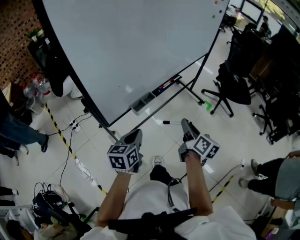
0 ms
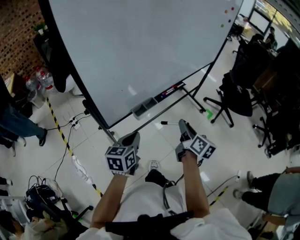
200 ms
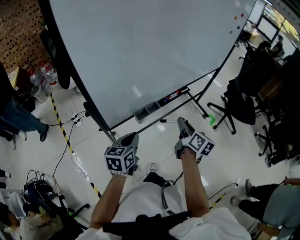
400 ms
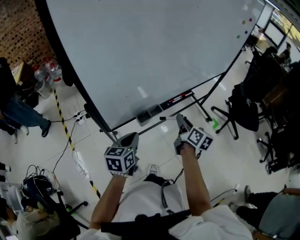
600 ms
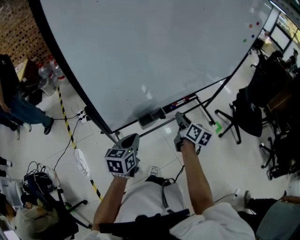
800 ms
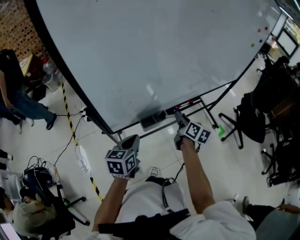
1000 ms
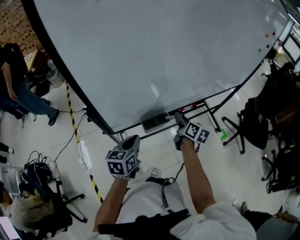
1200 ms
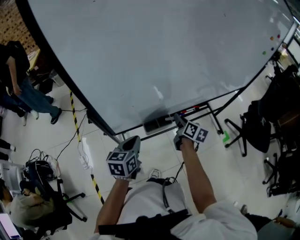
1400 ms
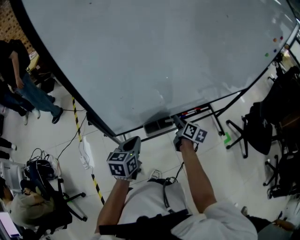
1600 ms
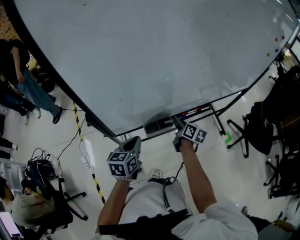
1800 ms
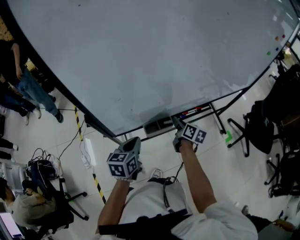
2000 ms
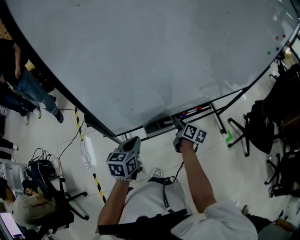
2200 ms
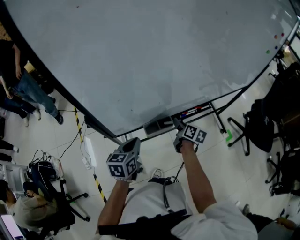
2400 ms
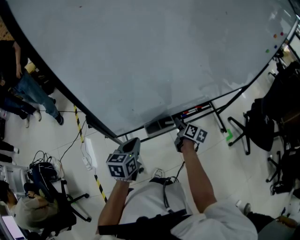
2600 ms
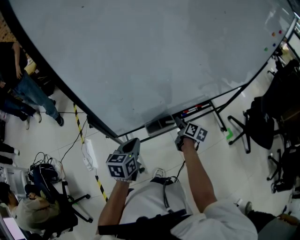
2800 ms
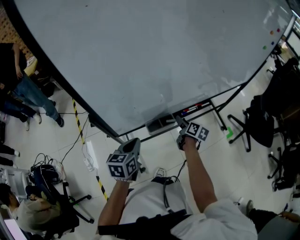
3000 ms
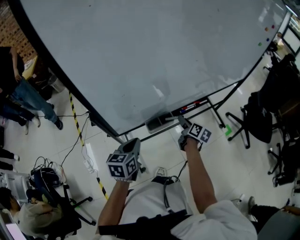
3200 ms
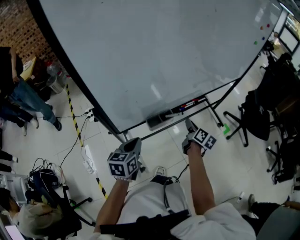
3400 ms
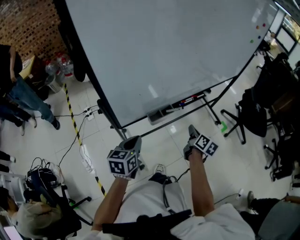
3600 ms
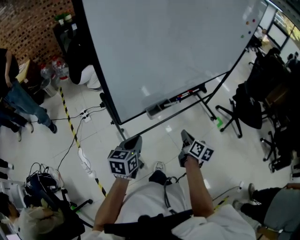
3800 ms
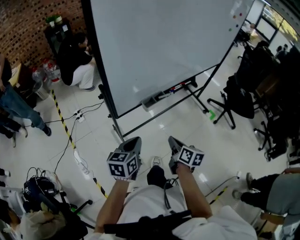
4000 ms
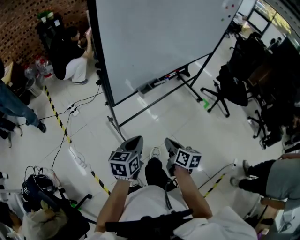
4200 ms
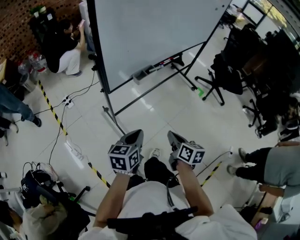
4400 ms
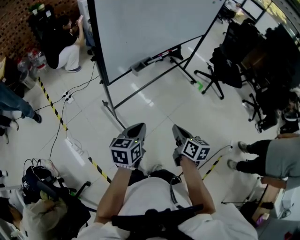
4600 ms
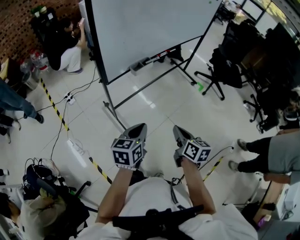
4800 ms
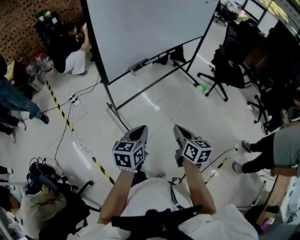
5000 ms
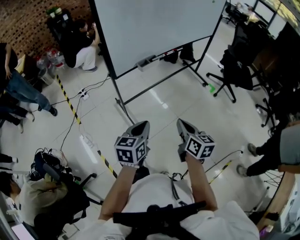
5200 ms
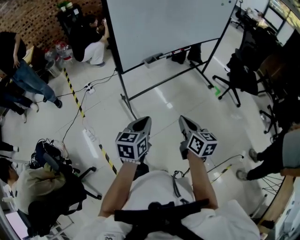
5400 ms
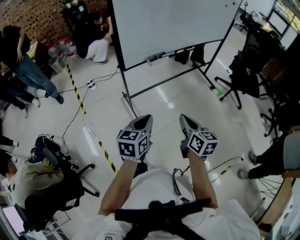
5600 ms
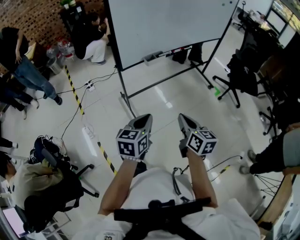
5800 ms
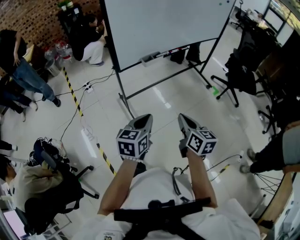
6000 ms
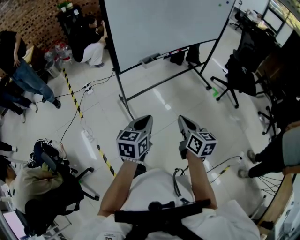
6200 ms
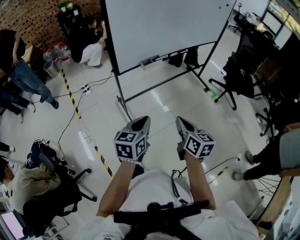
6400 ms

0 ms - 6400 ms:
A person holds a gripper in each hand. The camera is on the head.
0 ms - 1600 ms: The left gripper moves forward, some 10 cm, and turns by roughly 20 degrees; the right gripper moves forward and downward, approximately 30 cm, and rotates approximately 30 degrees.
1600 ms - 3200 ms: The right gripper moves about 5 cm, and opens up.
3200 ms - 4800 ms: The left gripper shifts some 30 cm backward, and rotates approximately 20 degrees, while the right gripper goes about 50 cm backward, and closes up.
4800 ms - 6400 ms: The left gripper shifts approximately 5 cm backward. The right gripper goes some 5 cm upward.

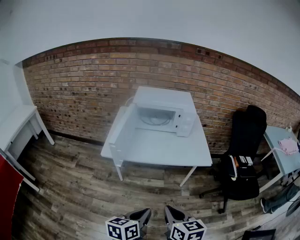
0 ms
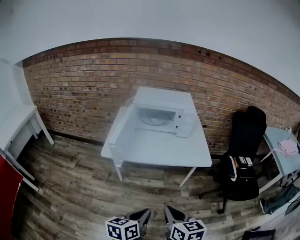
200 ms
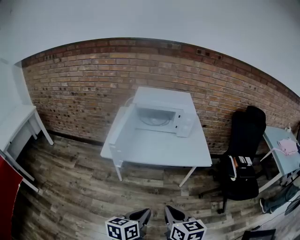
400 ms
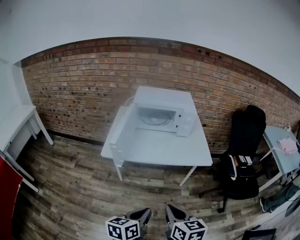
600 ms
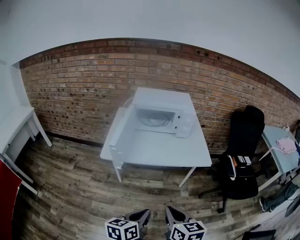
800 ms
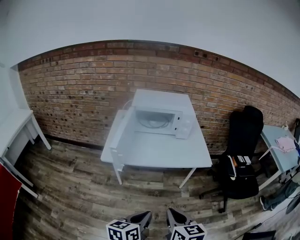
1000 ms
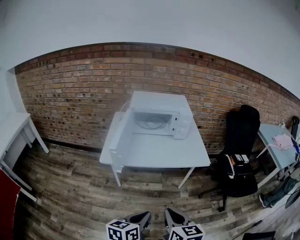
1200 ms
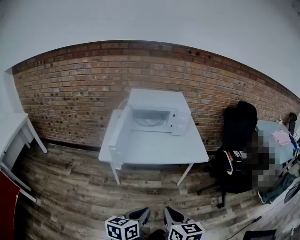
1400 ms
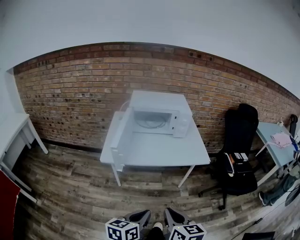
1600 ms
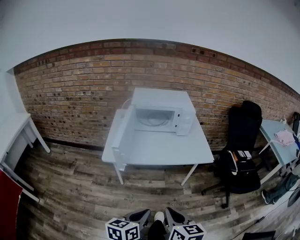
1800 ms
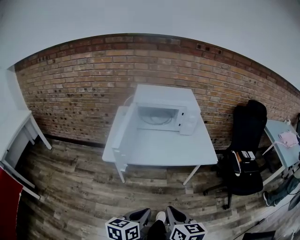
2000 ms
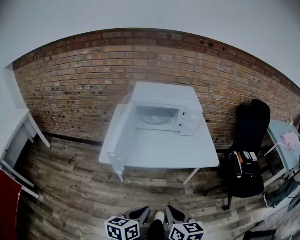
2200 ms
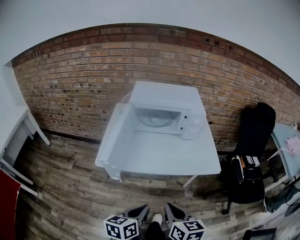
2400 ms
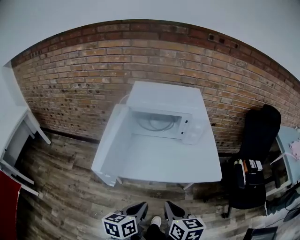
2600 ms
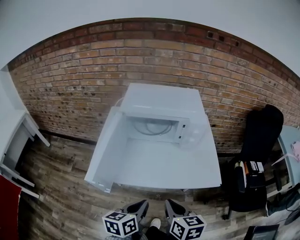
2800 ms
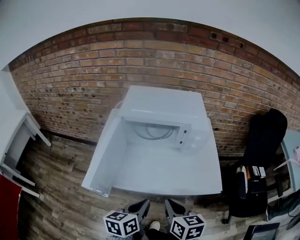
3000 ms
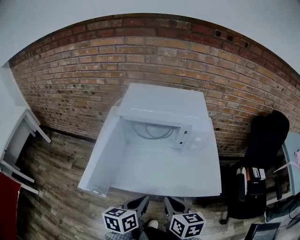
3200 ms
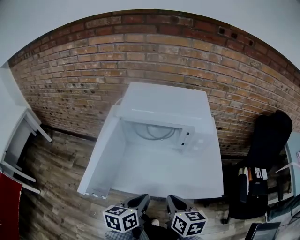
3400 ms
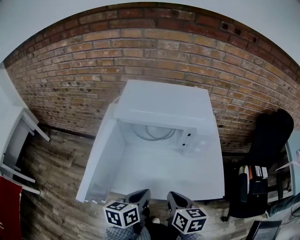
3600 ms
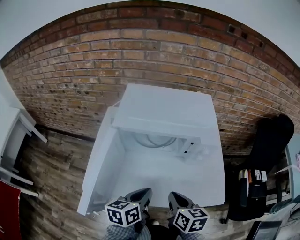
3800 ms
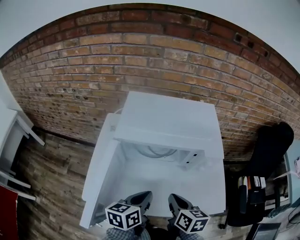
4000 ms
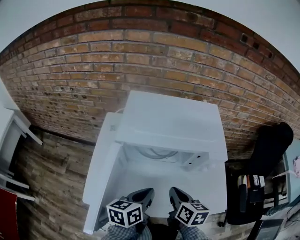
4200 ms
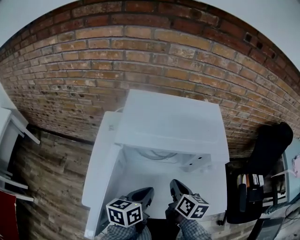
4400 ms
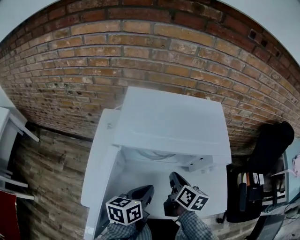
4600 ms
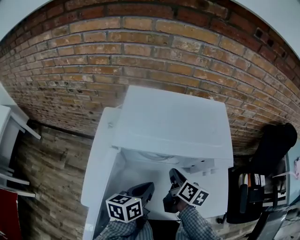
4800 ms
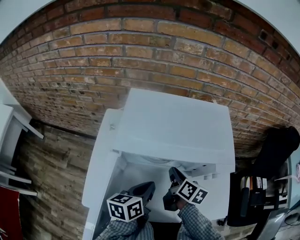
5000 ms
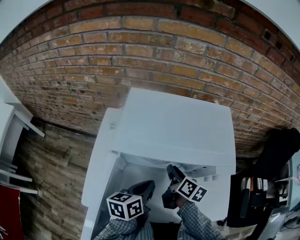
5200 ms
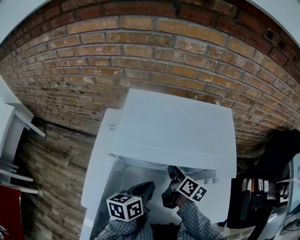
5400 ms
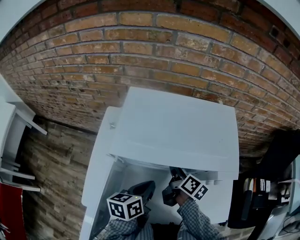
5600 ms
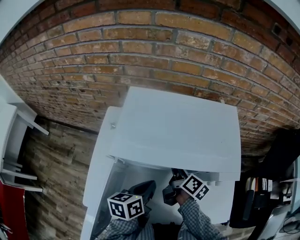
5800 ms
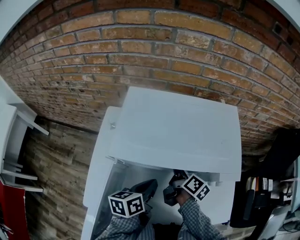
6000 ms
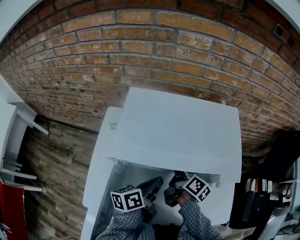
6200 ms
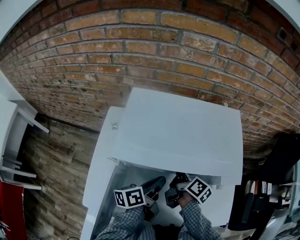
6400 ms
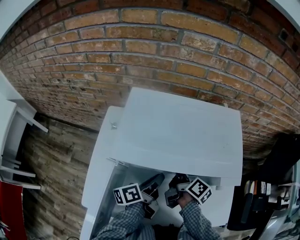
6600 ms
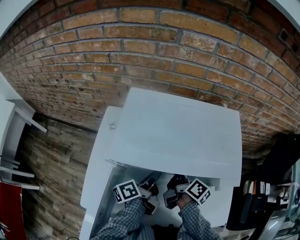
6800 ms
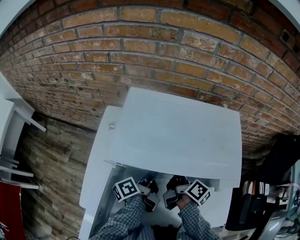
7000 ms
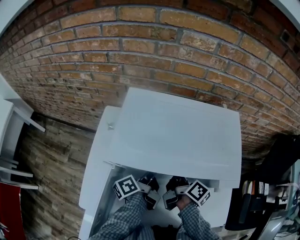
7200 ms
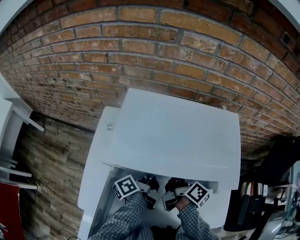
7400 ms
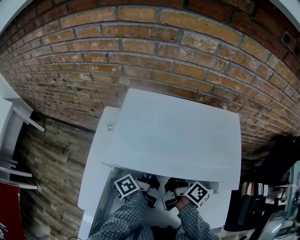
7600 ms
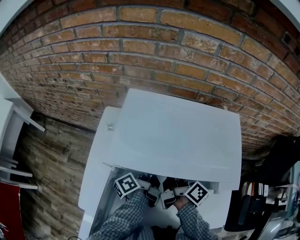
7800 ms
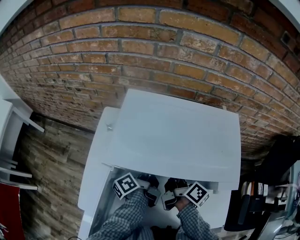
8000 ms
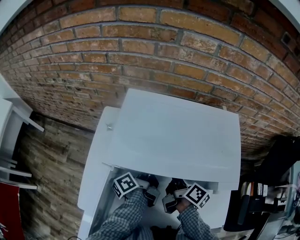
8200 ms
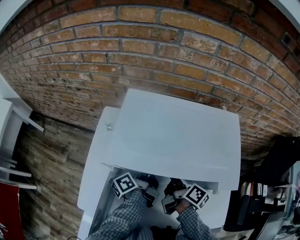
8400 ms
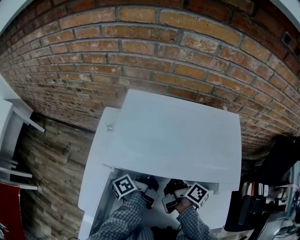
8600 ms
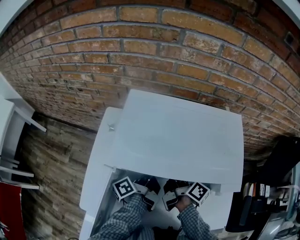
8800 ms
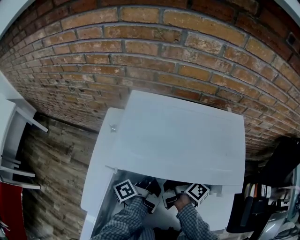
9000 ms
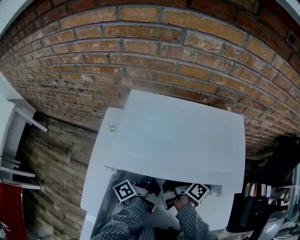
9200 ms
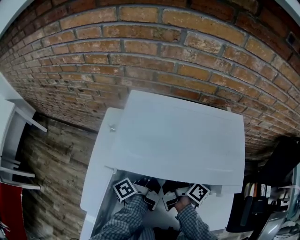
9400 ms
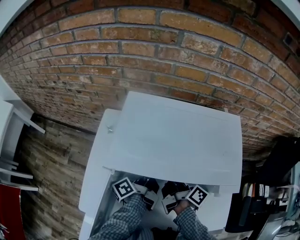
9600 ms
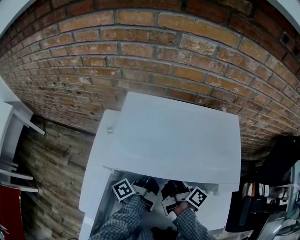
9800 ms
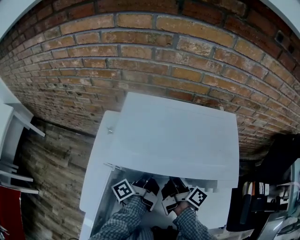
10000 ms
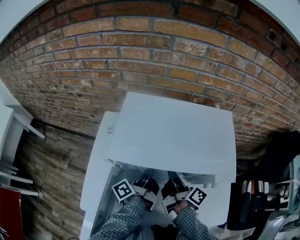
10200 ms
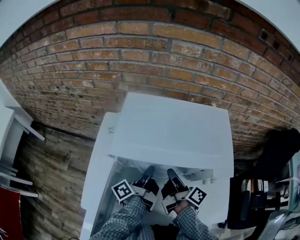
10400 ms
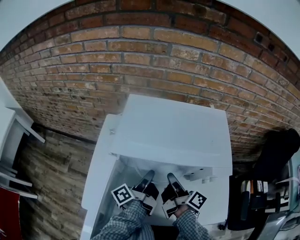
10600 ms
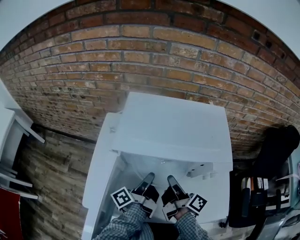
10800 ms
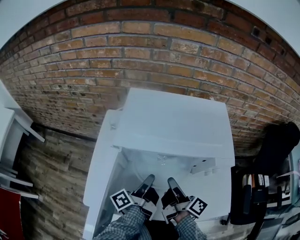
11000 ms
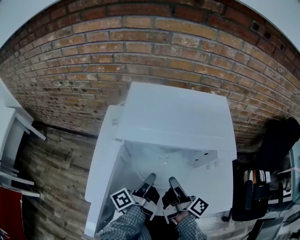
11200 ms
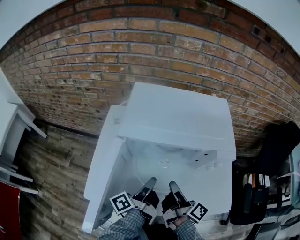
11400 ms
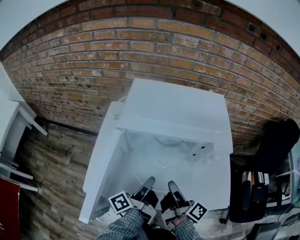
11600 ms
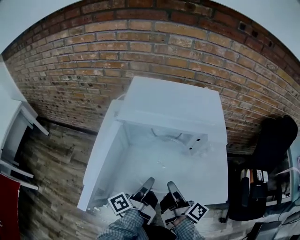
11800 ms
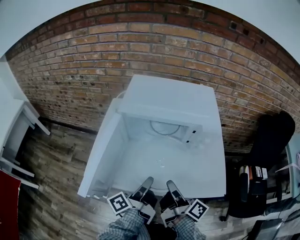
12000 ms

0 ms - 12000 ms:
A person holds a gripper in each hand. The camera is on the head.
1600 ms - 3000 ms: The right gripper moves approximately 35 cm.
3000 ms - 4400 ms: The right gripper changes place by roughly 25 cm.
4400 ms - 6000 ms: The right gripper ends up roughly 15 cm from where it was, and rotates some 30 degrees.
9000 ms - 10400 ms: The right gripper heads upward, covering approximately 5 cm.
10400 ms - 12000 ms: The right gripper shifts by approximately 25 cm.

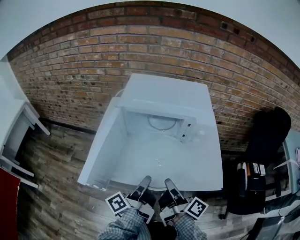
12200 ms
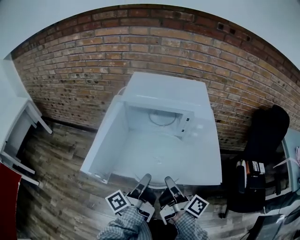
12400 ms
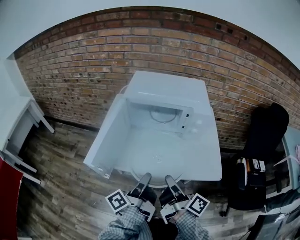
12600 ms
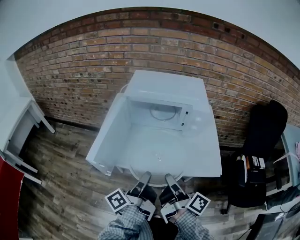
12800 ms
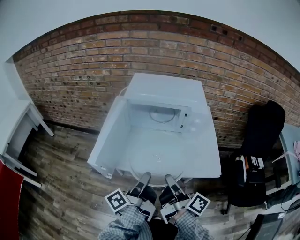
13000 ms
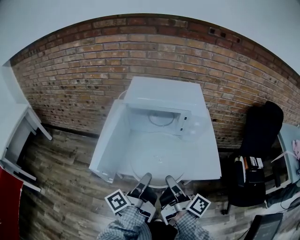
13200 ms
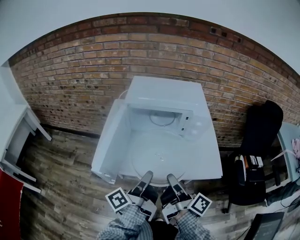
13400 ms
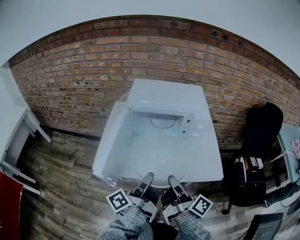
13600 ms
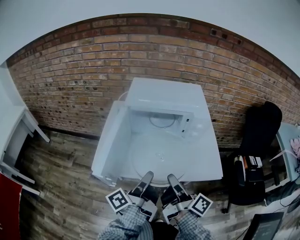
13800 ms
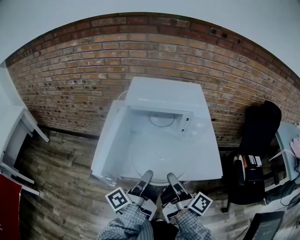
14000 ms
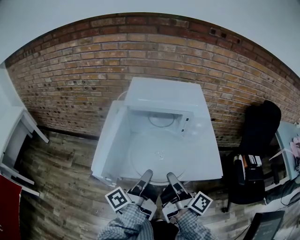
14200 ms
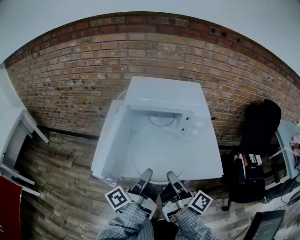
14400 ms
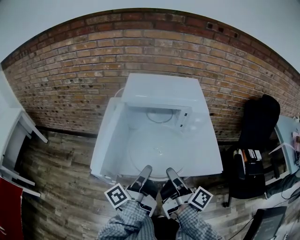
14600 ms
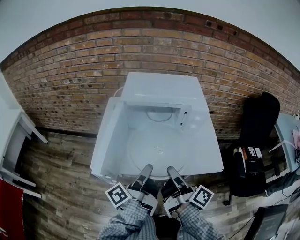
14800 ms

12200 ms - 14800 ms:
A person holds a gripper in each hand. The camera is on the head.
12200 ms - 13400 ms: The right gripper shifts by approximately 10 cm.

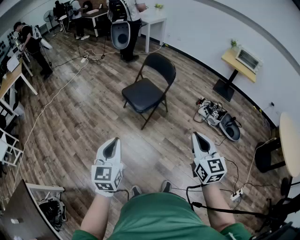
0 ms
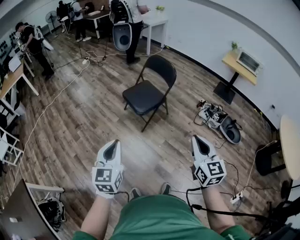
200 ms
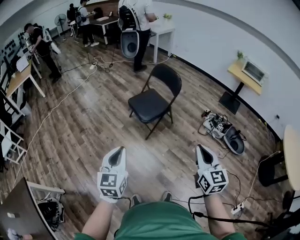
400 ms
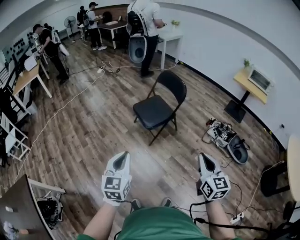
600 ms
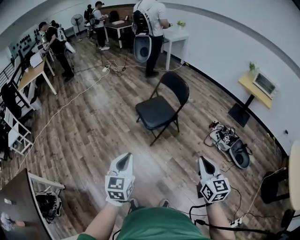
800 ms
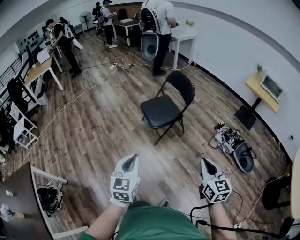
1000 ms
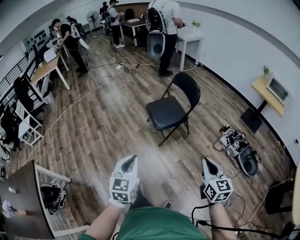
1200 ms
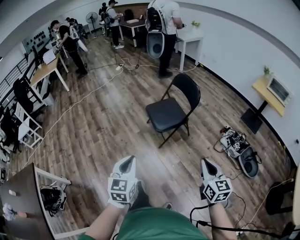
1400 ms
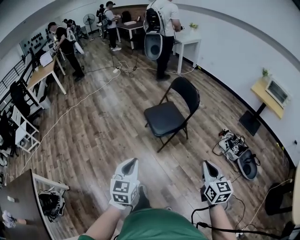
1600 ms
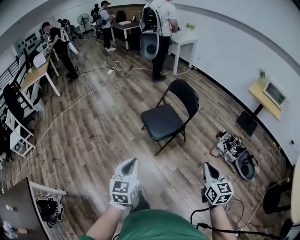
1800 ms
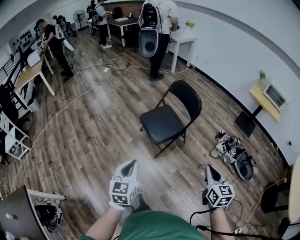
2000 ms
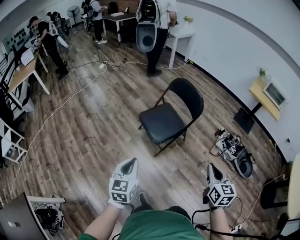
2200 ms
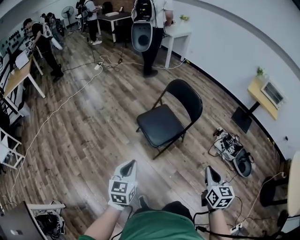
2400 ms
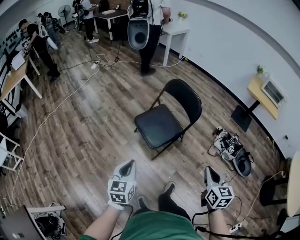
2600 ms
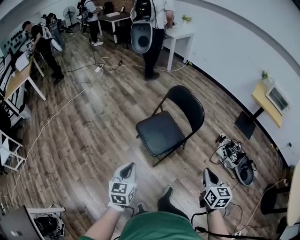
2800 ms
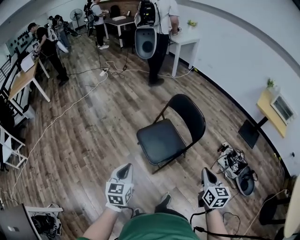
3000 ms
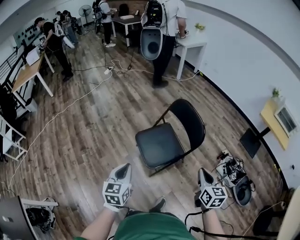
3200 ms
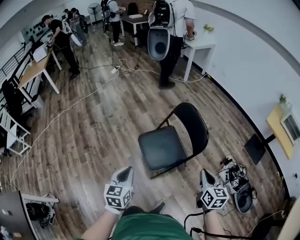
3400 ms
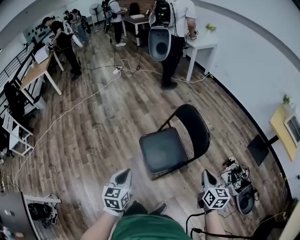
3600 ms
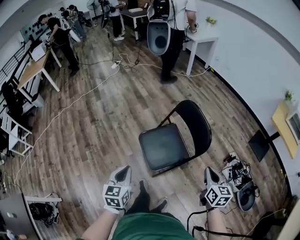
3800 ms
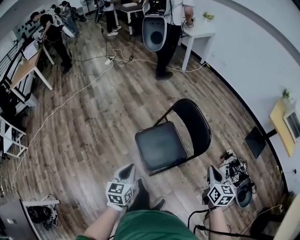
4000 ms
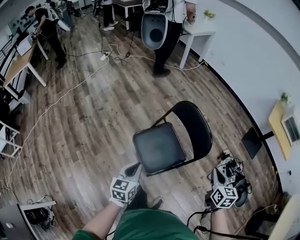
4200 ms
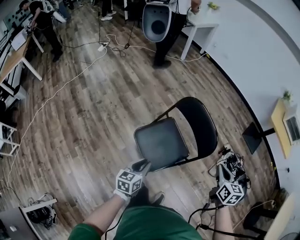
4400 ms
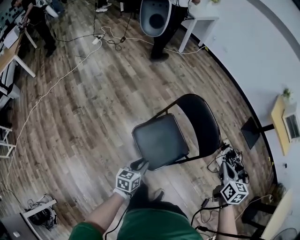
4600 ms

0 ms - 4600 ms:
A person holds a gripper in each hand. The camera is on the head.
0 ms - 1600 ms: The left gripper goes some 10 cm to the right and forward; the right gripper is displaced forward, to the right and downward by some 15 cm.
1600 ms - 3000 ms: Both grippers travel together forward, about 30 cm.
3000 ms - 4600 ms: The left gripper goes approximately 30 cm forward and downward, and changes its angle by approximately 30 degrees. Meanwhile the right gripper shifts about 25 cm forward.
